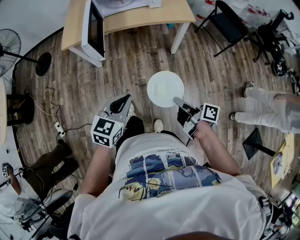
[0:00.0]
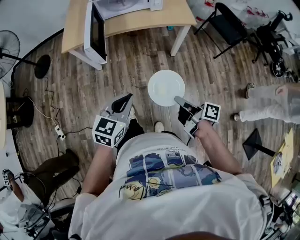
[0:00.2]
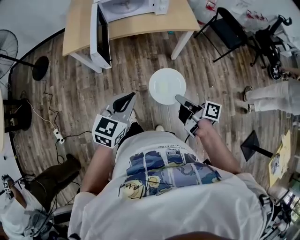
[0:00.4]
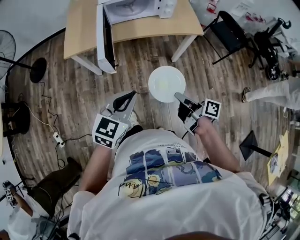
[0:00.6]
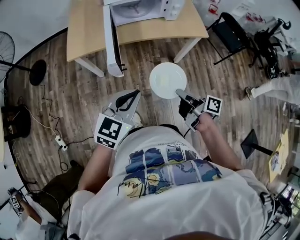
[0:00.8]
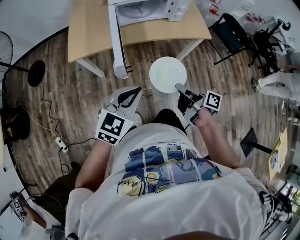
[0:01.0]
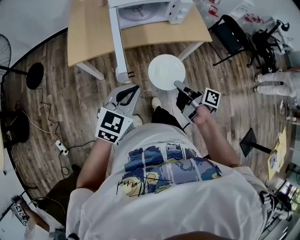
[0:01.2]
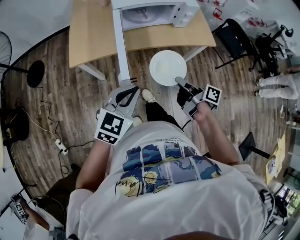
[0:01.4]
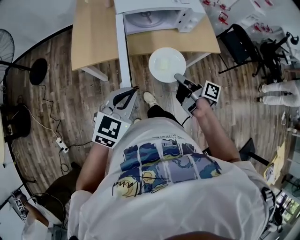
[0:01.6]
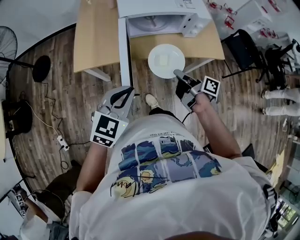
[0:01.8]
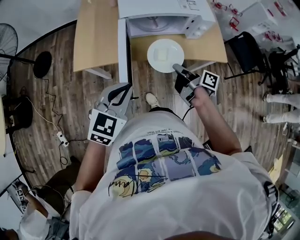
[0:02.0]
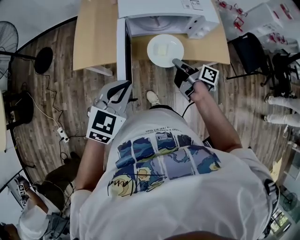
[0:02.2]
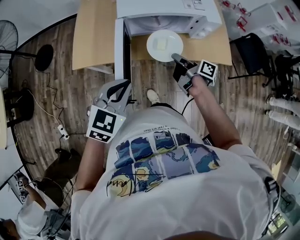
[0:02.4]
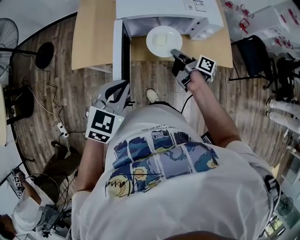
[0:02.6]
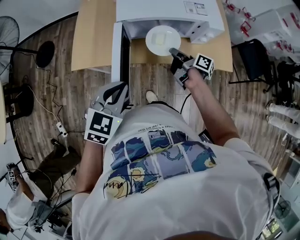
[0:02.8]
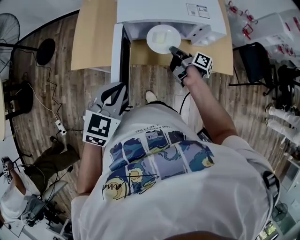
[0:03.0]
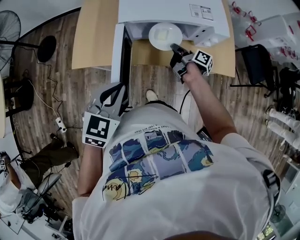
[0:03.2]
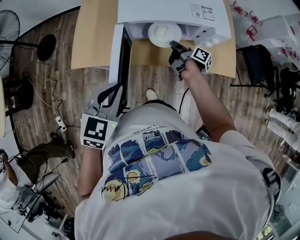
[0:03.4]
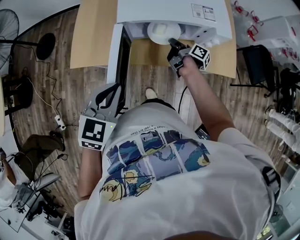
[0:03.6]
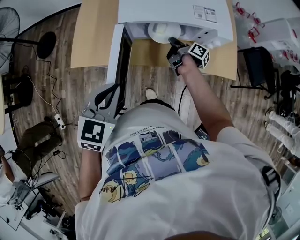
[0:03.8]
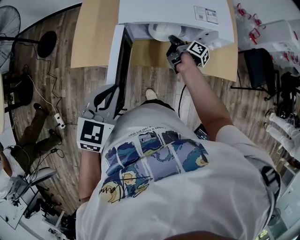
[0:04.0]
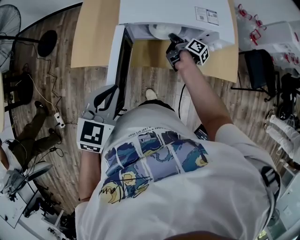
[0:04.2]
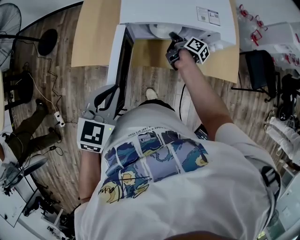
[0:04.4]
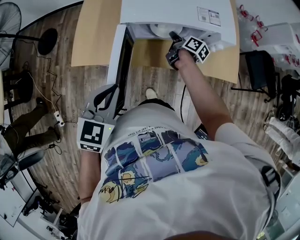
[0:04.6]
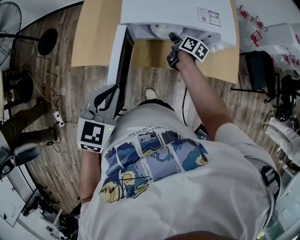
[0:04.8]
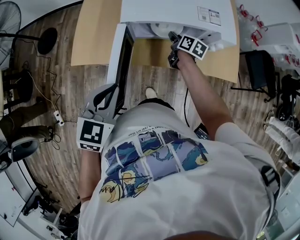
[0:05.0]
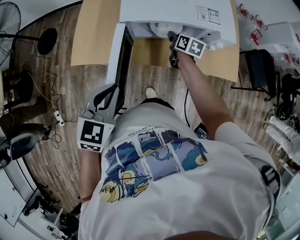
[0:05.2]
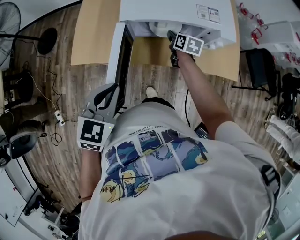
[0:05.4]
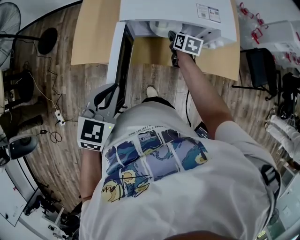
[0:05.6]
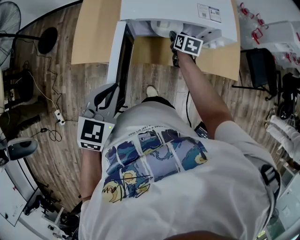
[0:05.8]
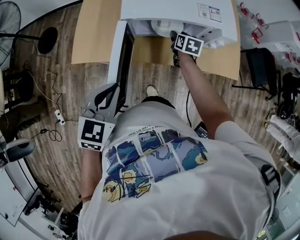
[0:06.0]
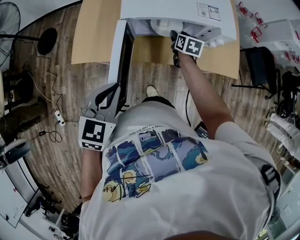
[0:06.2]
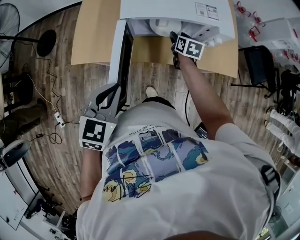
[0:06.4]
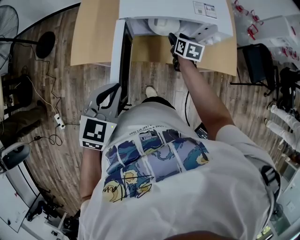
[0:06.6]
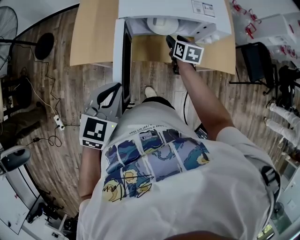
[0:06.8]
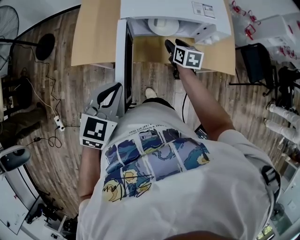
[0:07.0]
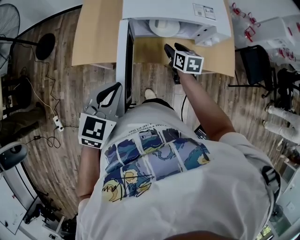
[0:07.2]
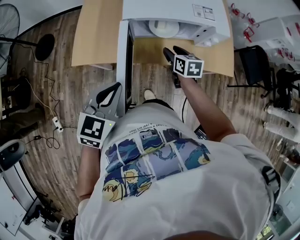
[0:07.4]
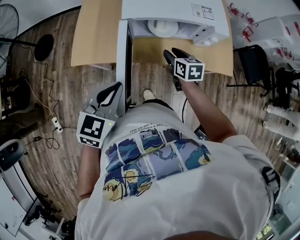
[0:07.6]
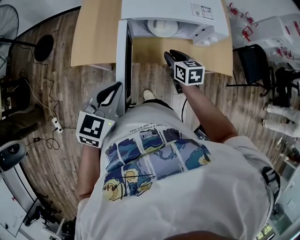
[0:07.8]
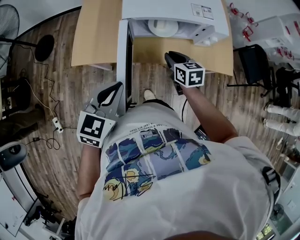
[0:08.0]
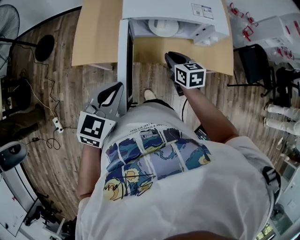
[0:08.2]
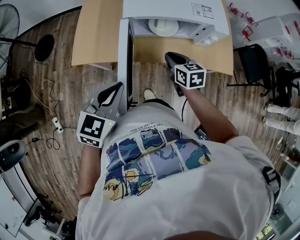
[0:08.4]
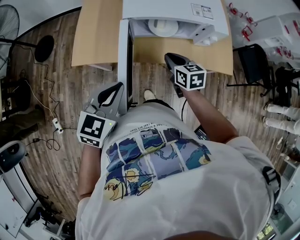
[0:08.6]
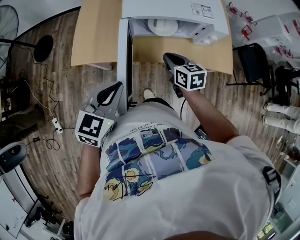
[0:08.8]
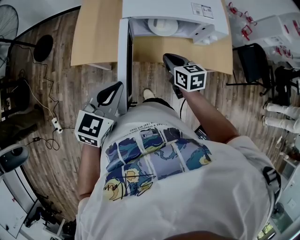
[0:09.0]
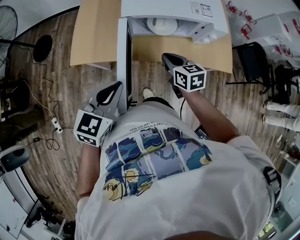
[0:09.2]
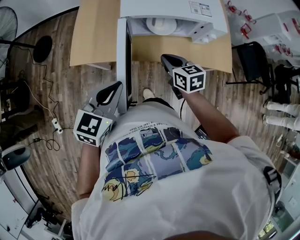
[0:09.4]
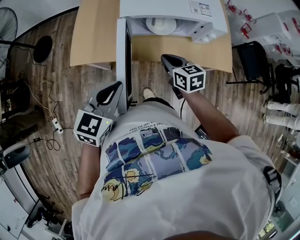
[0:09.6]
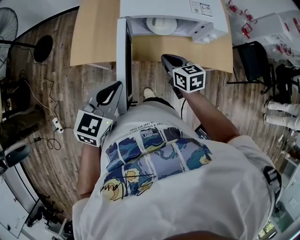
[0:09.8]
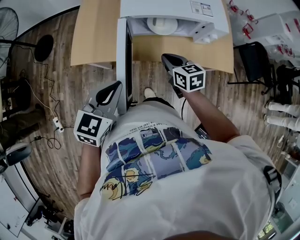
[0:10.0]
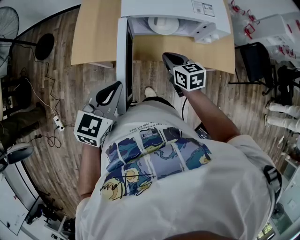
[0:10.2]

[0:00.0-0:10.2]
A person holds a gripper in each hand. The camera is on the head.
0:00.0 to 0:01.4: The two grippers go some 25 cm forward and to the left.
0:01.4 to 0:03.0: The right gripper goes about 30 cm forward. Meanwhile the left gripper travels forward by roughly 15 cm.
0:03.0 to 0:04.4: The right gripper is displaced forward by approximately 10 cm.
0:04.4 to 0:05.8: The right gripper rolls counterclockwise, seen from behind, by about 50 degrees, and opens.
0:05.8 to 0:07.2: The right gripper is displaced backward by roughly 10 cm.
0:07.2 to 0:08.8: The right gripper heads backward, covering about 5 cm, and closes up.
0:08.8 to 0:10.2: The grippers make only small movements.

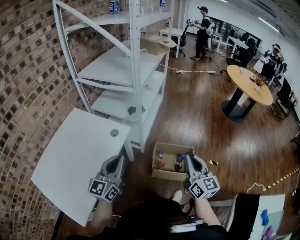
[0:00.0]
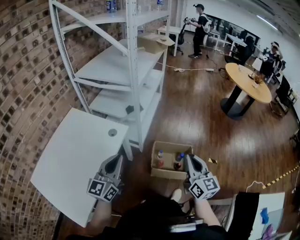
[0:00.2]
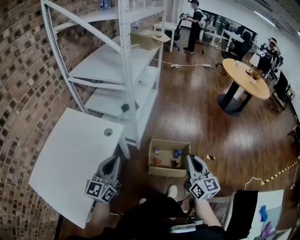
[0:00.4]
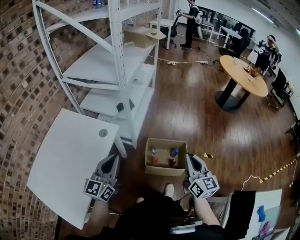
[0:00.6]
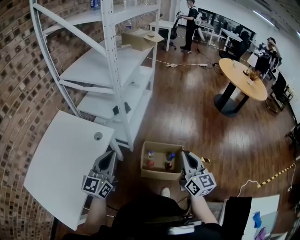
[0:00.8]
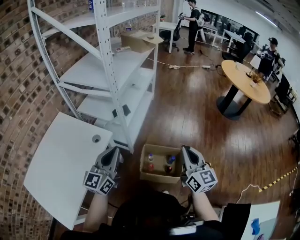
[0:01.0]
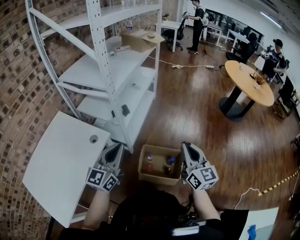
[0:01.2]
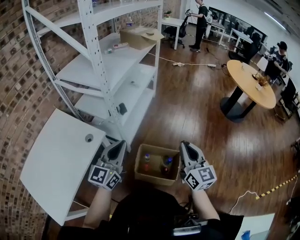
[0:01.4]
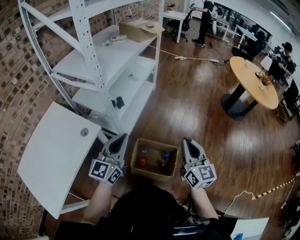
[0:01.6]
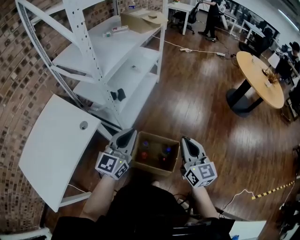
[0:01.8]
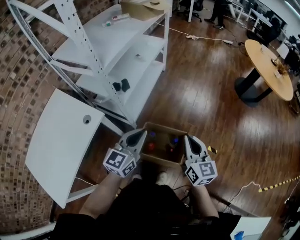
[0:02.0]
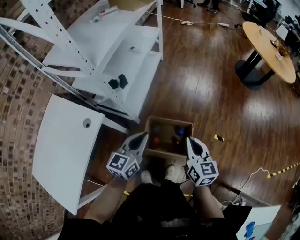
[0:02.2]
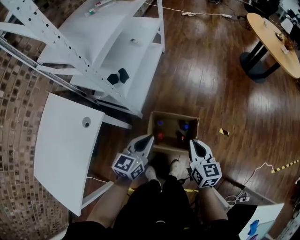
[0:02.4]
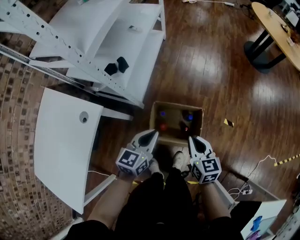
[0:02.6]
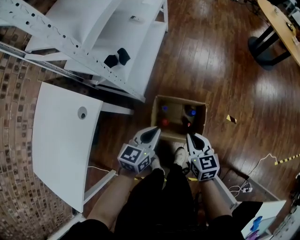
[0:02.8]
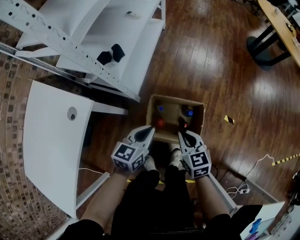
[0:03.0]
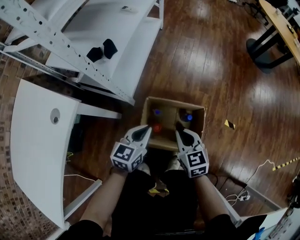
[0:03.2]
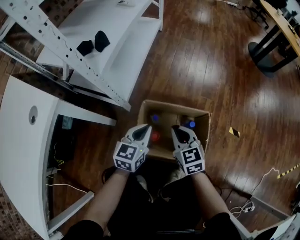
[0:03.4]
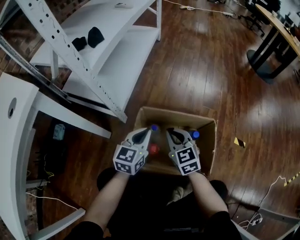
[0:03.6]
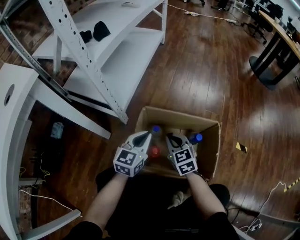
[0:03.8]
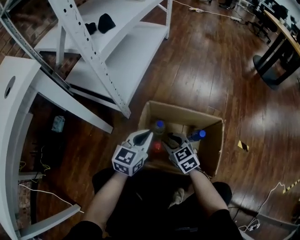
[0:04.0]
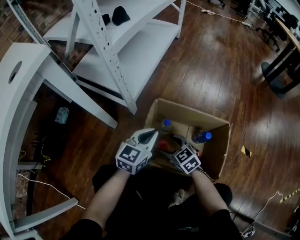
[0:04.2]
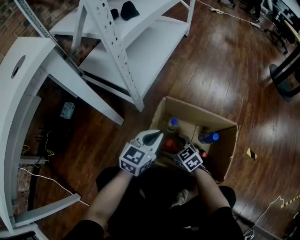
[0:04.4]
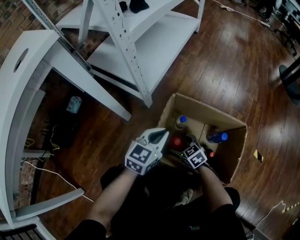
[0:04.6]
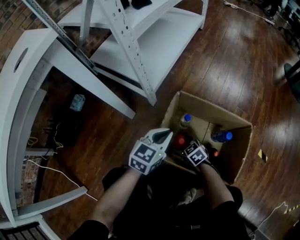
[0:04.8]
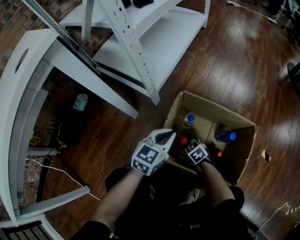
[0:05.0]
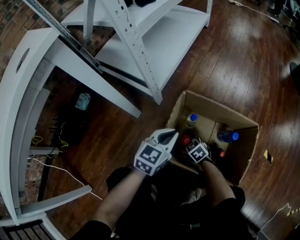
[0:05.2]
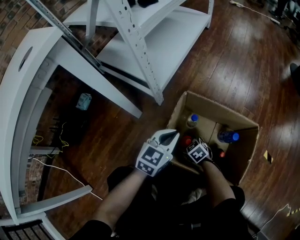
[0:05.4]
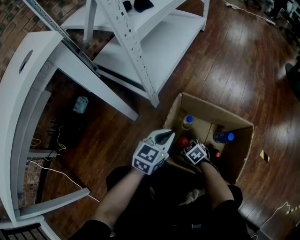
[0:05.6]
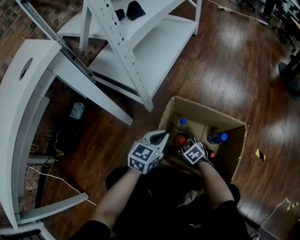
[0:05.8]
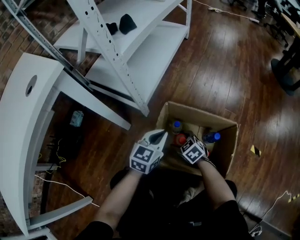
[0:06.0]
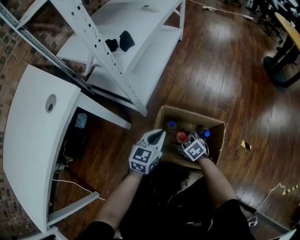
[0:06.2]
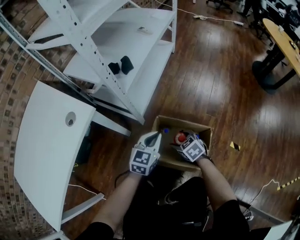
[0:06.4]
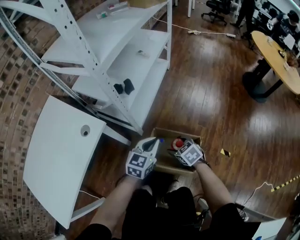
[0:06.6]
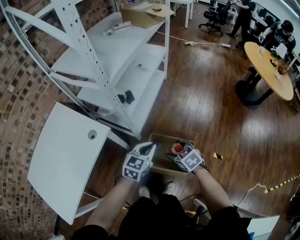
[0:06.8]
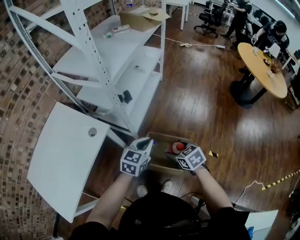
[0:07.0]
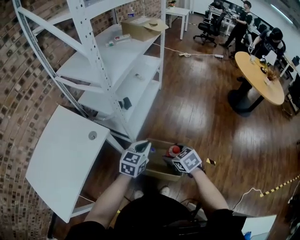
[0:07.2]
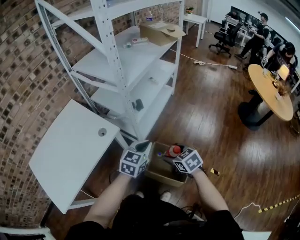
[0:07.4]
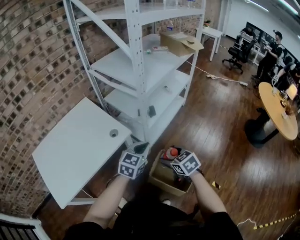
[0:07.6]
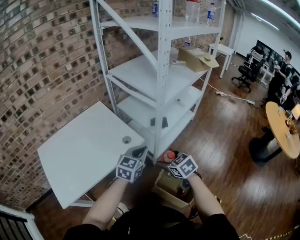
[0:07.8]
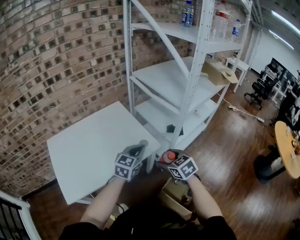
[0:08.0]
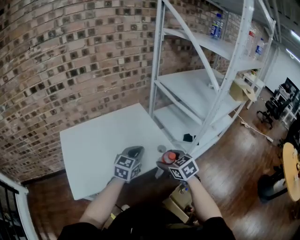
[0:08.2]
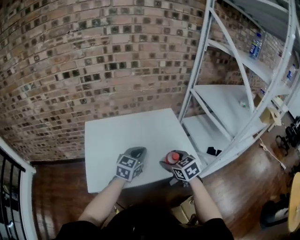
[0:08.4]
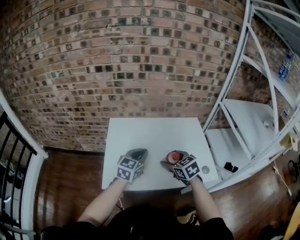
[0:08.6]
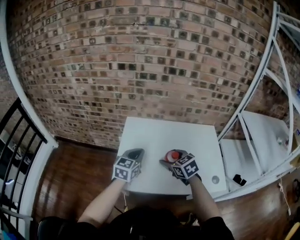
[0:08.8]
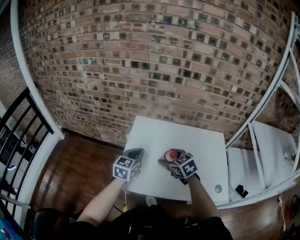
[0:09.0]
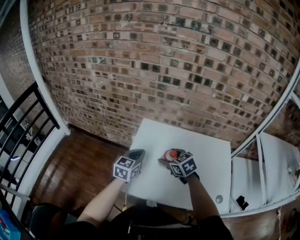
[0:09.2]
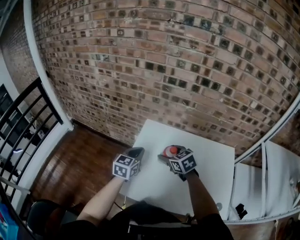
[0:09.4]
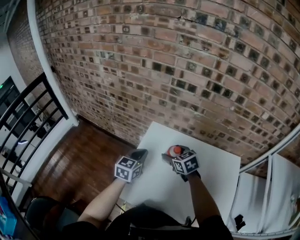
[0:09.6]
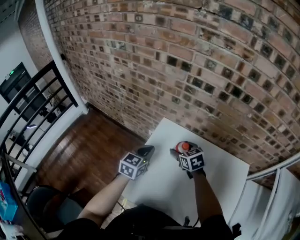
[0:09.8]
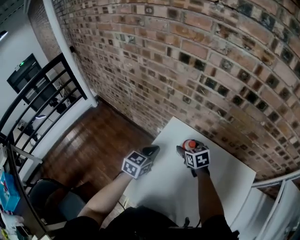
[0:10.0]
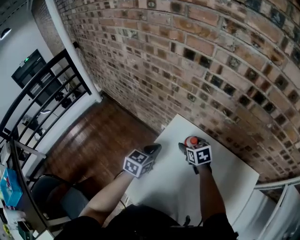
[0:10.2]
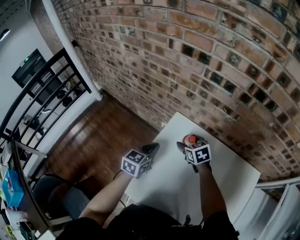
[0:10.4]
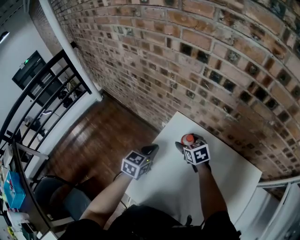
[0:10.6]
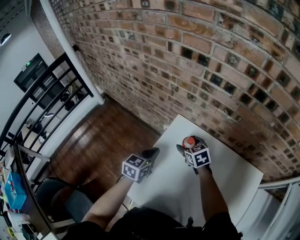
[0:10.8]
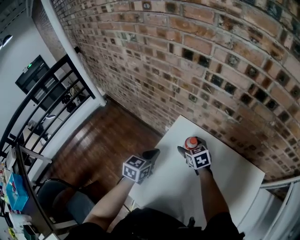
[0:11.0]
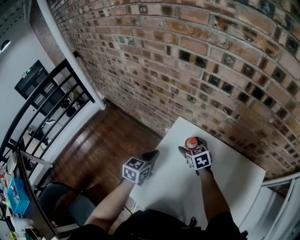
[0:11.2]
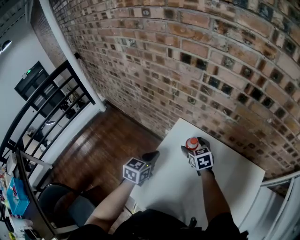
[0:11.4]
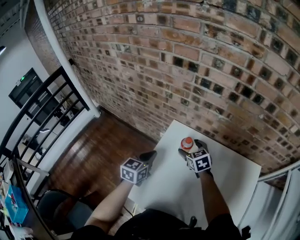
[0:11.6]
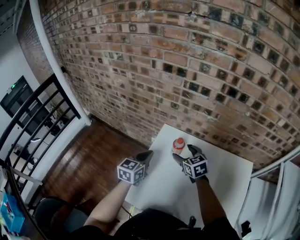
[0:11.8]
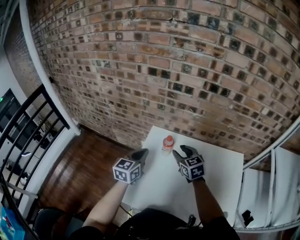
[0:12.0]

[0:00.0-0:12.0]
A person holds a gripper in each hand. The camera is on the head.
0:00.0 to 0:01.6: The left gripper shifts about 30 cm to the right and forward. The right gripper travels forward and to the right by approximately 25 cm.
0:01.6 to 0:03.0: Both grippers travel together downward, approximately 35 cm. The left gripper tilts its fingers approximately 30 degrees downward, while the right gripper angles its fingers downward, by roughly 30 degrees.
0:03.0 to 0:04.4: The grippers both shift downward by about 40 cm. The right gripper swivels roughly 30 degrees, and opens up.
0:04.4 to 0:06.0: The right gripper moves some 10 cm downward and comes back.
0:06.0 to 0:07.6: Both grippers travel together upward, approximately 60 cm.
0:07.6 to 0:09.0: Both grippers are carried approximately 70 cm. The left gripper rotates roughly 70 degrees. Meanwhile the right gripper swivels roughly 60 degrees.
0:09.0 to 0:10.4: The left gripper shifts roughly 20 cm forward and downward. Meanwhile the right gripper goes approximately 30 cm forward and downward.
0:10.4 to 0:12.0: The right gripper shifts some 15 cm upward and backward, rotates about 20 degrees, and closes its fingers. Meanwhile the left gripper goes approximately 10 cm upward.

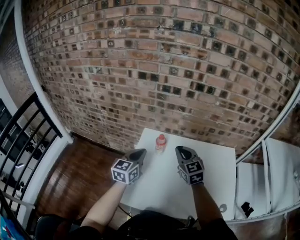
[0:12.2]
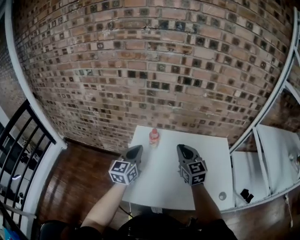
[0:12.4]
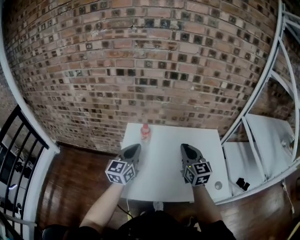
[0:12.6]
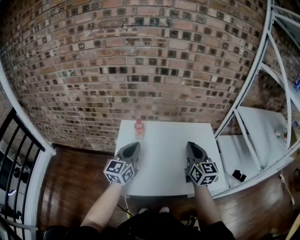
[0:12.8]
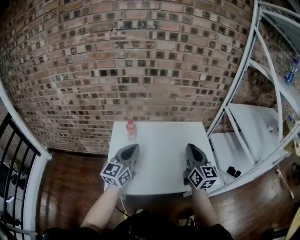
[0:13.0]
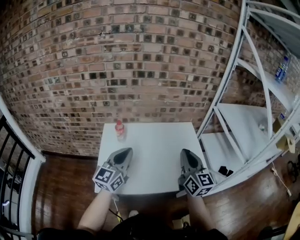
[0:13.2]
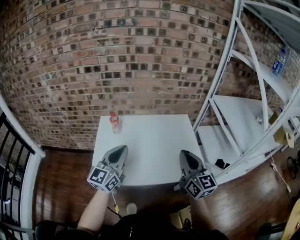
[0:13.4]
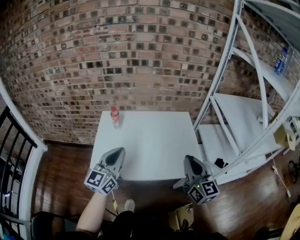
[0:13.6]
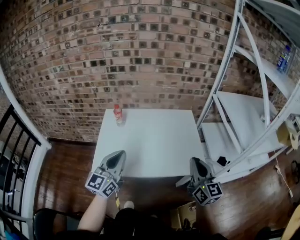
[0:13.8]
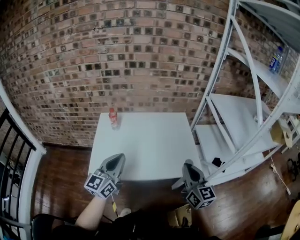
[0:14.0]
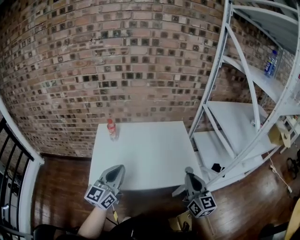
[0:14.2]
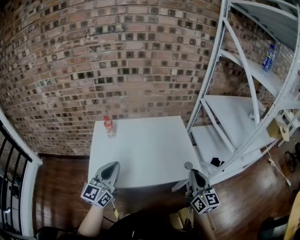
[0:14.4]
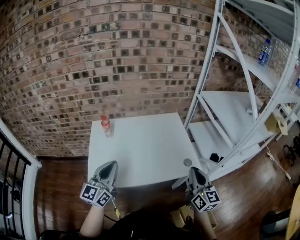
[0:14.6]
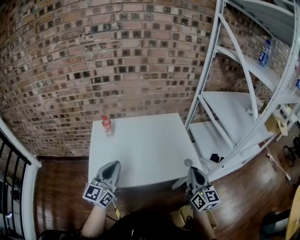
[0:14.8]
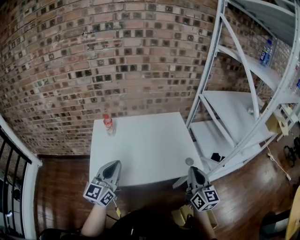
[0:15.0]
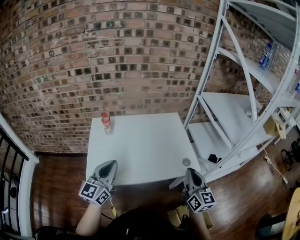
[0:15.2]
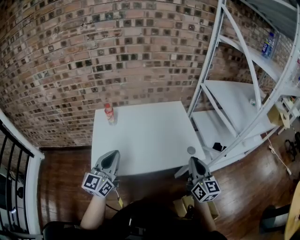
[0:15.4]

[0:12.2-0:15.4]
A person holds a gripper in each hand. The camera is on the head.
0:12.2 to 0:13.8: Both grippers travel together backward and to the right, approximately 40 cm. The left gripper changes its angle by roughly 20 degrees. The right gripper turns by about 30 degrees.
0:13.8 to 0:15.4: The grippers make only small movements.
